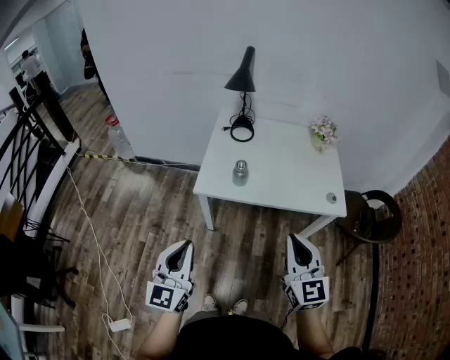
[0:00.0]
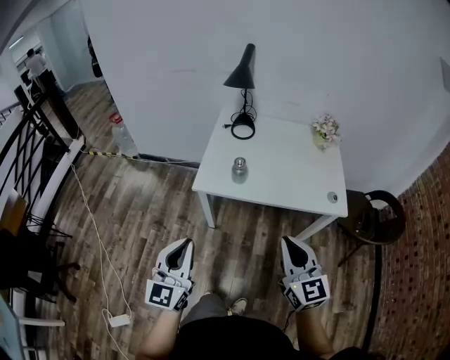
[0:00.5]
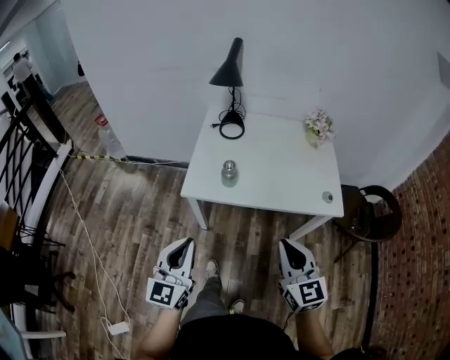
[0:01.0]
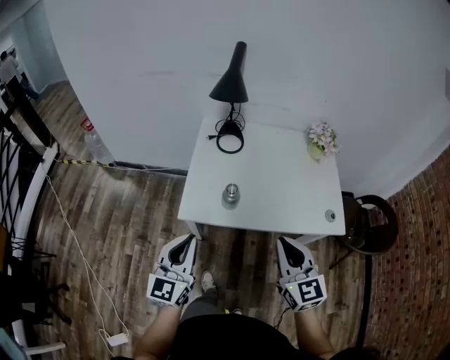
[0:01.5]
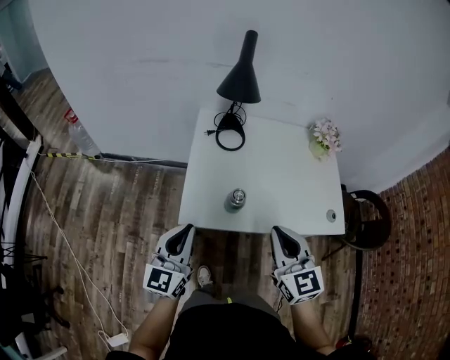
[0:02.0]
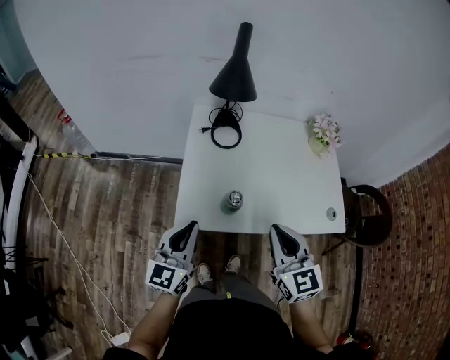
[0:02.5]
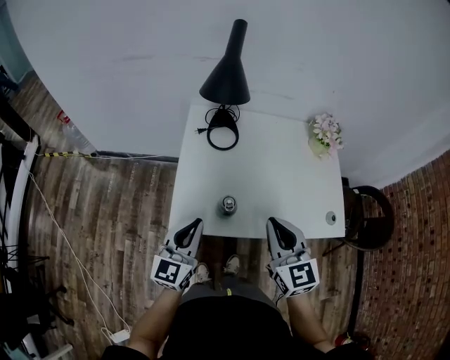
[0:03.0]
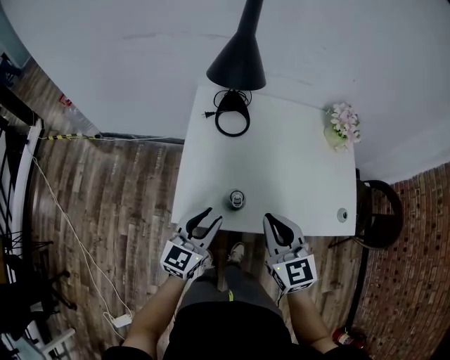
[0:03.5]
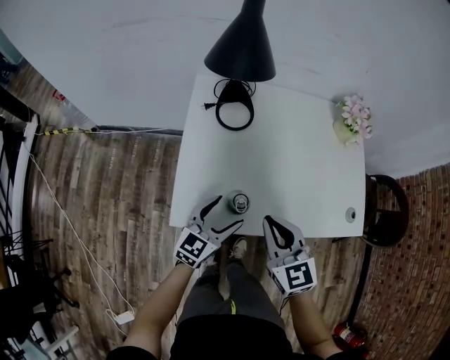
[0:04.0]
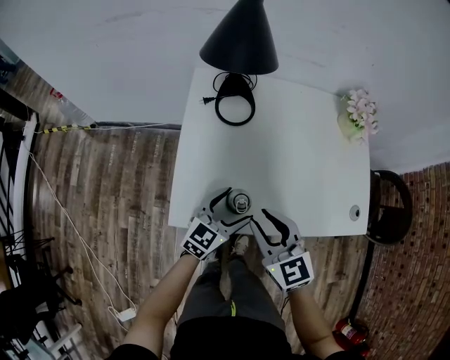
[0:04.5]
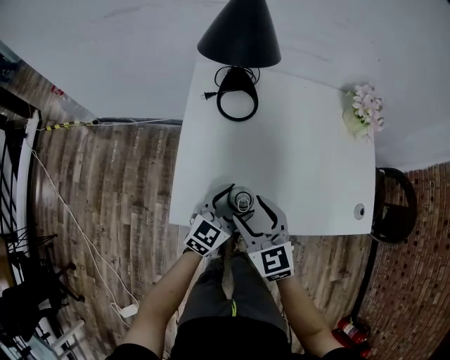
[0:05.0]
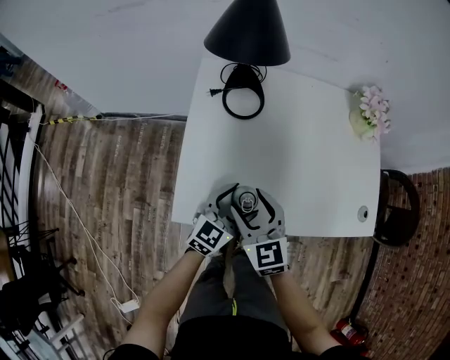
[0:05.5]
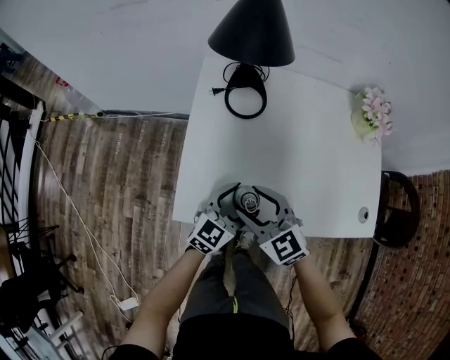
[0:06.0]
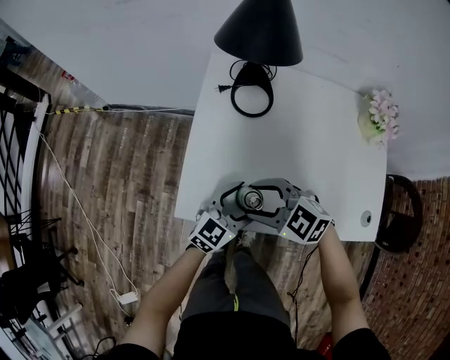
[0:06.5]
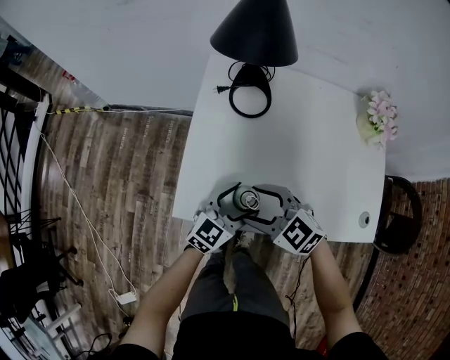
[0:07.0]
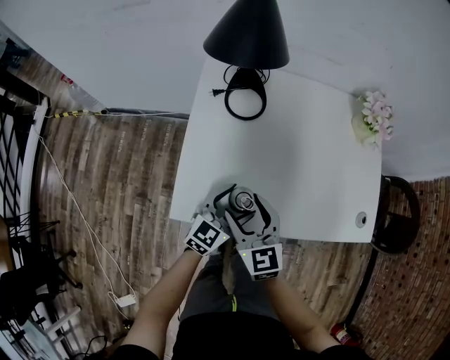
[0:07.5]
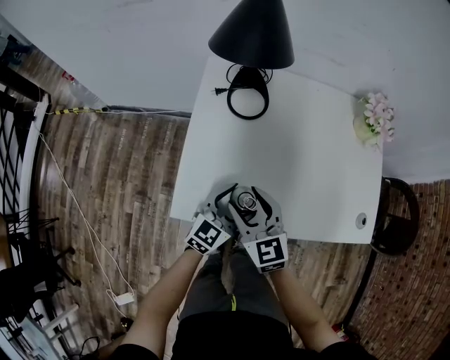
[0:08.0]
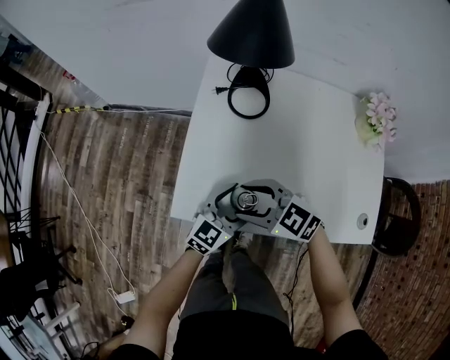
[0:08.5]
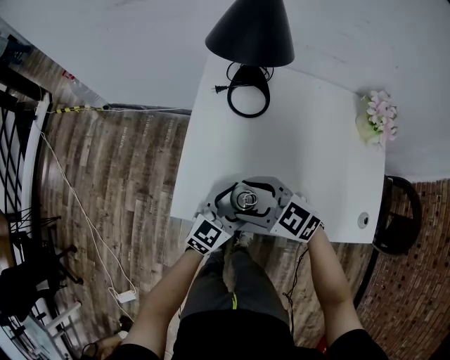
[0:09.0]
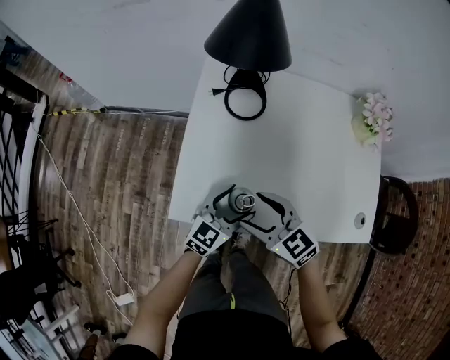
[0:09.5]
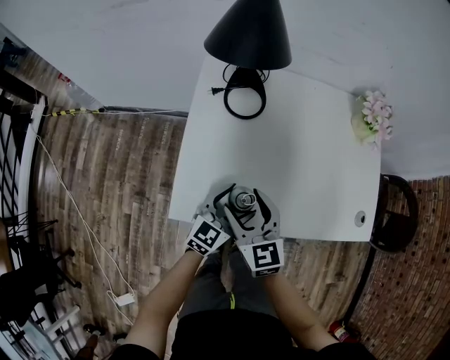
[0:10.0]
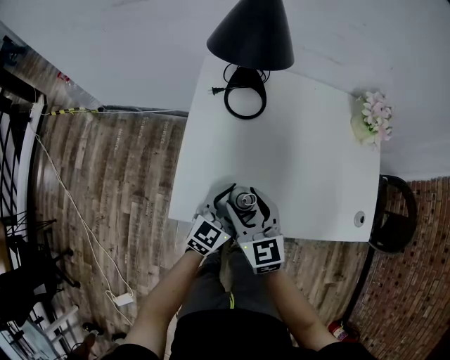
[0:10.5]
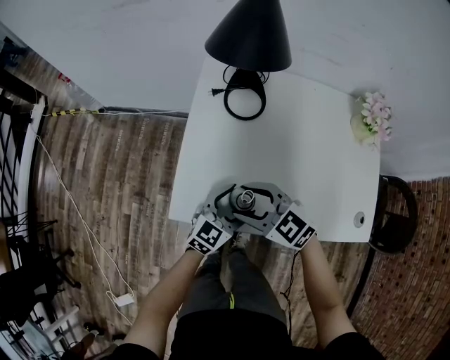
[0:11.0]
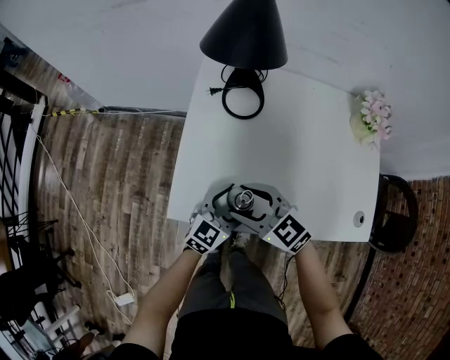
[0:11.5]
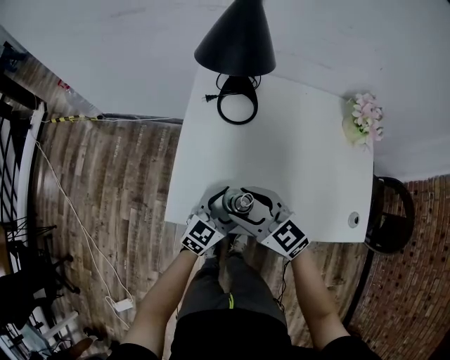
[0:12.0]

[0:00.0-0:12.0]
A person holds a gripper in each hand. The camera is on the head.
0:00.0 to 0:02.0: The two grippers go about 25 cm forward.
0:02.0 to 0:04.0: The left gripper heads downward, to the right and forward, covering approximately 25 cm, rotates approximately 30 degrees, and opens, while the right gripper is displaced downward and forward by roughly 15 cm.
0:04.0 to 0:06.0: The right gripper is displaced to the left and downward by about 10 cm, changes its angle by some 30 degrees, and opens, while the left gripper shifts by some 5 cm.
0:10.0 to 0:12.0: The right gripper rotates some 30 degrees.

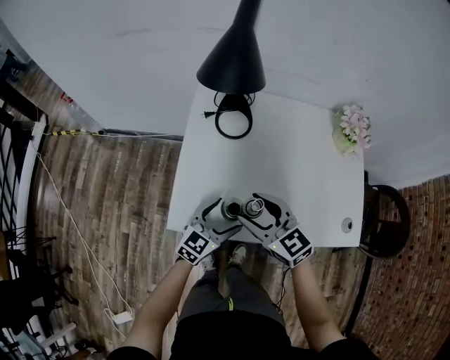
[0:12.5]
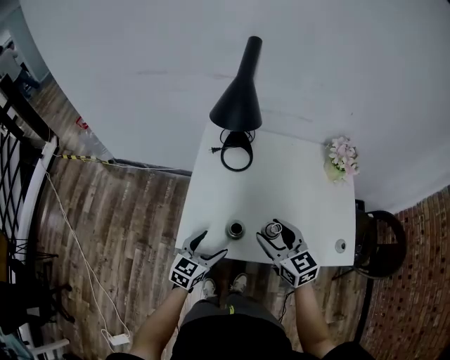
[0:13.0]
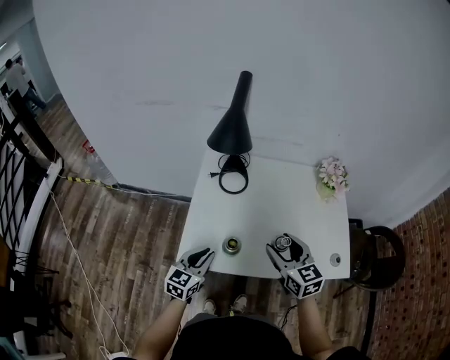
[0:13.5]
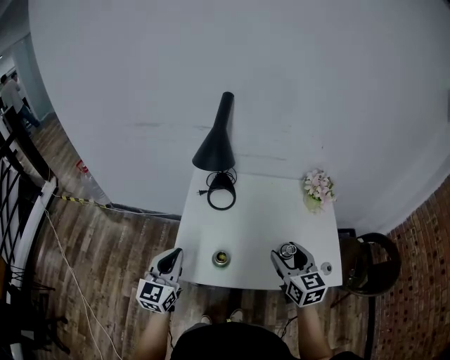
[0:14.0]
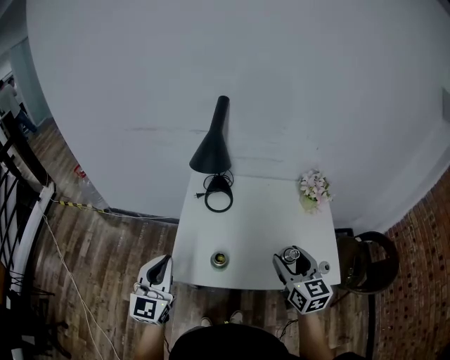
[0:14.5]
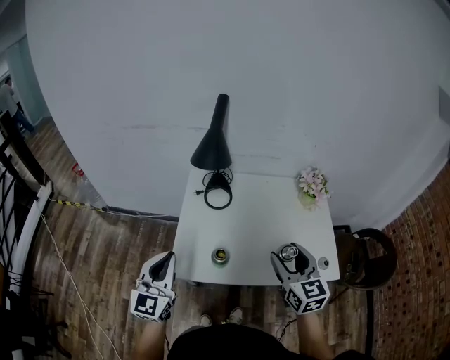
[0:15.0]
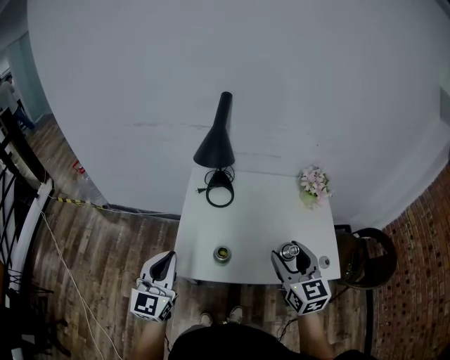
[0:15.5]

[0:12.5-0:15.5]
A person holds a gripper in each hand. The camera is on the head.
0:12.5 to 0:14.0: The right gripper heads to the right and upward, covering some 20 cm, and rotates approximately 30 degrees. The left gripper moves upward and to the left, some 25 cm, turns by approximately 30 degrees, and closes.
0:14.0 to 0:15.5: Both grippers travel together upward, approximately 5 cm.

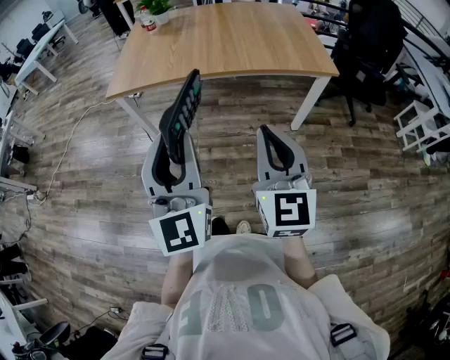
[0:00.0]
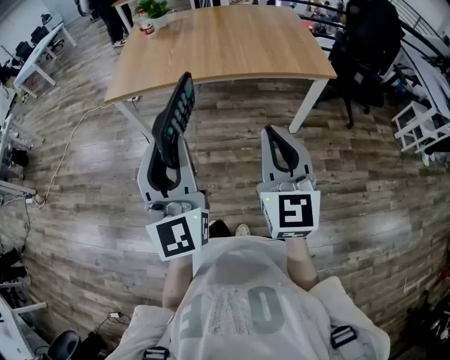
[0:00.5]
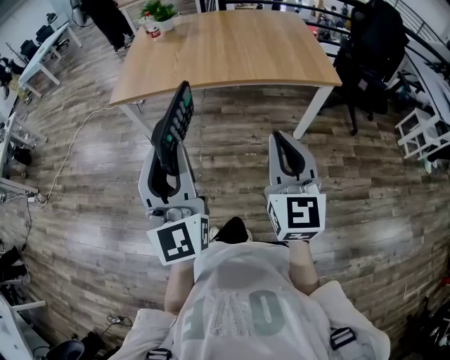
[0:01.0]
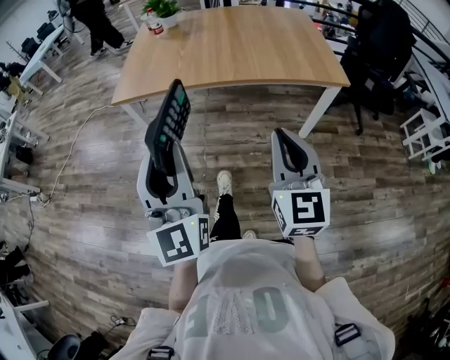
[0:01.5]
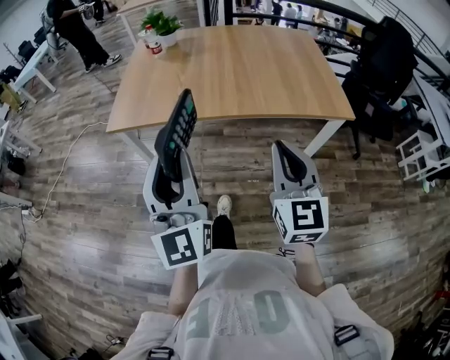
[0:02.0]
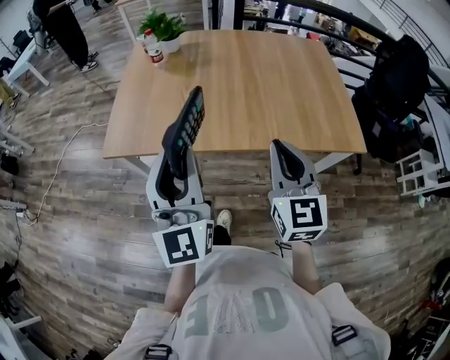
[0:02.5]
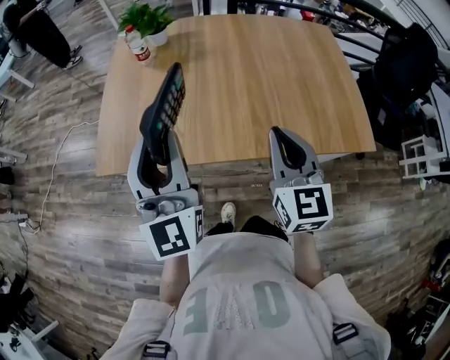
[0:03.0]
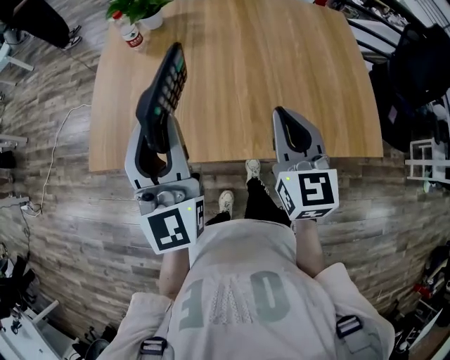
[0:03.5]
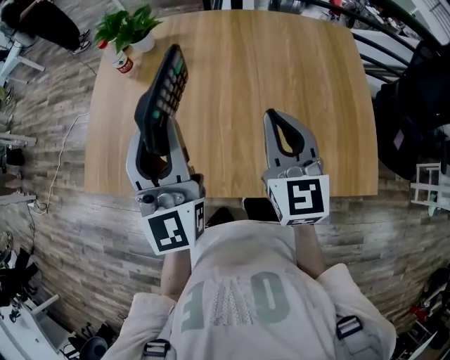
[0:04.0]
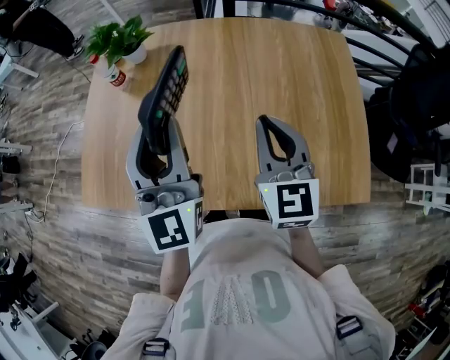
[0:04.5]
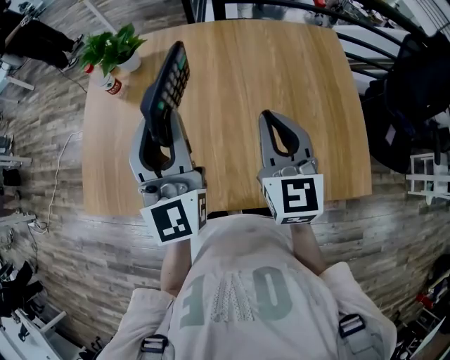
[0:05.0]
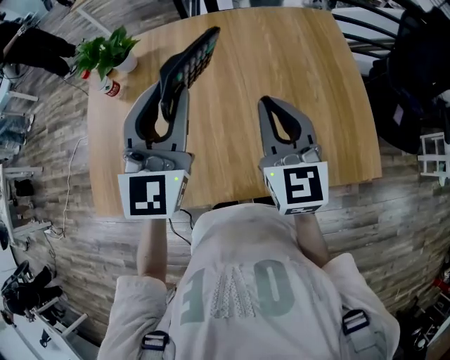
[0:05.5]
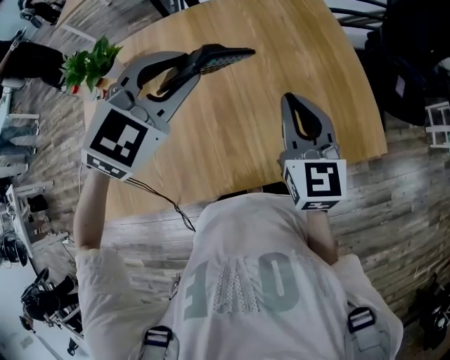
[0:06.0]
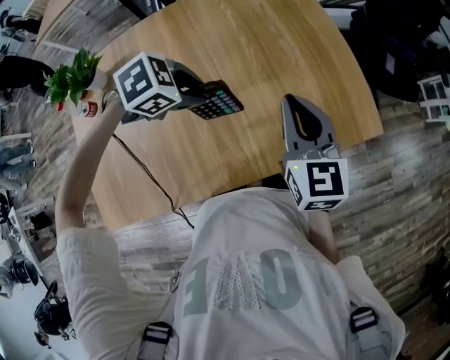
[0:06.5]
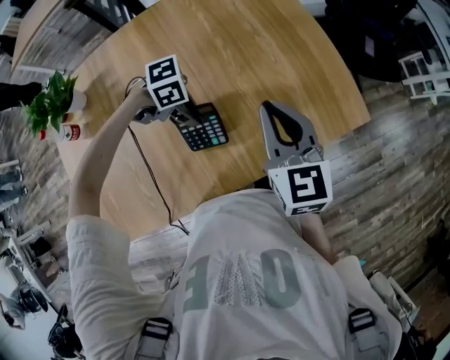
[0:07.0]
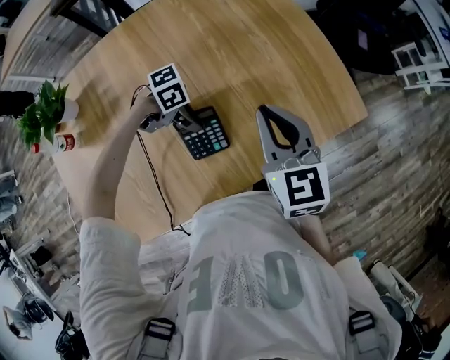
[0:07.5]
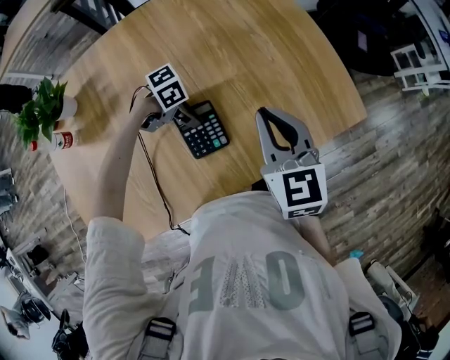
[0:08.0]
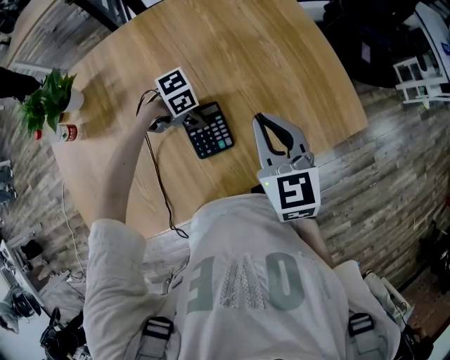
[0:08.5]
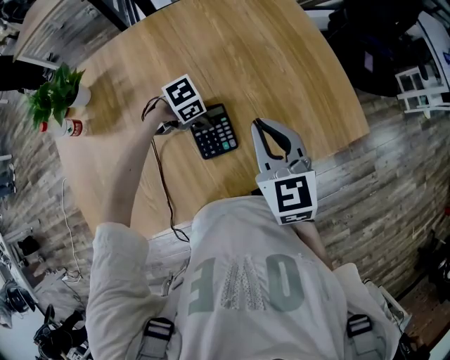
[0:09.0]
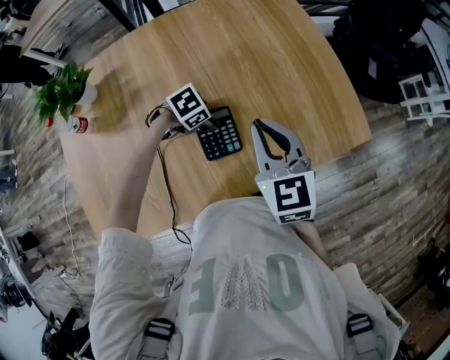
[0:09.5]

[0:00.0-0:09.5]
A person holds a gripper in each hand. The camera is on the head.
0:00.0 to 0:02.0: Both grippers move forward, some 20 cm.
0:02.0 to 0:04.0: The two grippers travel together, forward, about 50 cm.
0:04.0 to 0:05.5: The left gripper heads to the right and forward, covering roughly 10 cm, and turns by some 30 degrees.
0:05.5 to 0:07.5: The right gripper ends up roughly 10 cm from where it was, and rotates approximately 20 degrees. Meanwhile the left gripper moves downward, roughly 35 cm, and tilts its fingers about 40 degrees downward.
0:07.5 to 0:09.5: The left gripper ends up approximately 5 cm from where it was, rotates roughly 40 degrees, and opens. Meanwhile the right gripper ends up about 5 cm from where it was.

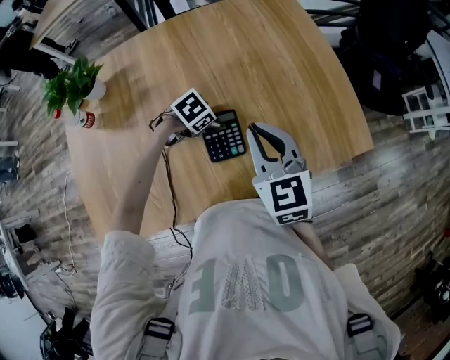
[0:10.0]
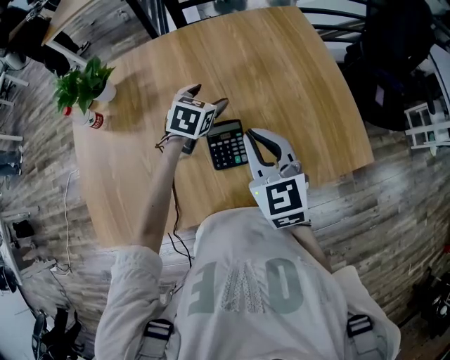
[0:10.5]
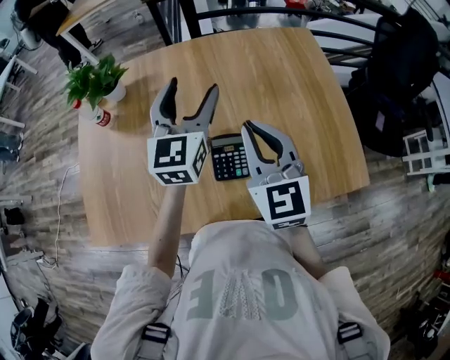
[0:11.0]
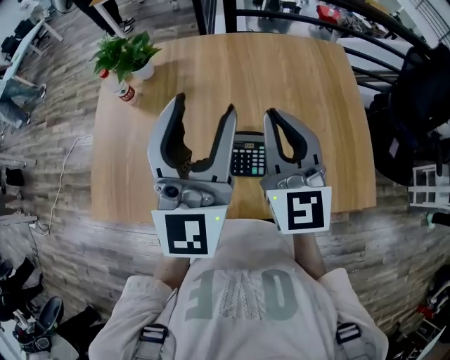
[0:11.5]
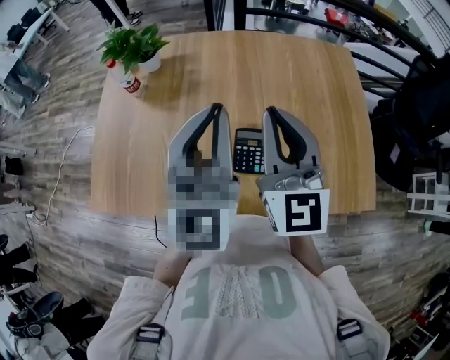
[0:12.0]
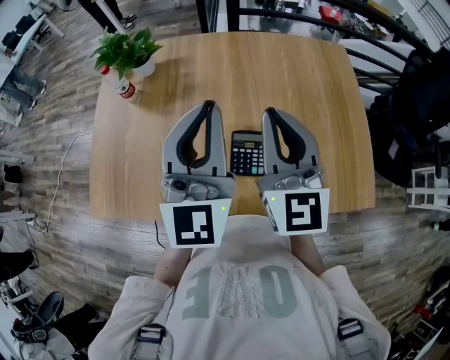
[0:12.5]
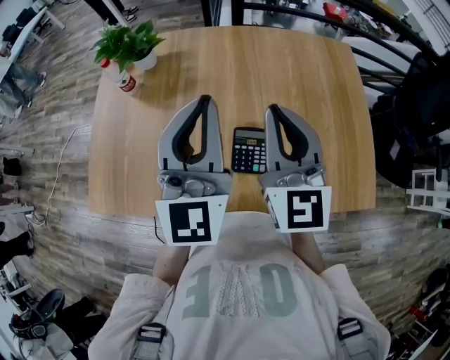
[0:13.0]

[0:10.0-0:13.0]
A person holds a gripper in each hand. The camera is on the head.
0:10.0 to 0:11.5: The right gripper travels upward by approximately 15 cm, and rotates approximately 30 degrees. Meanwhile the left gripper moves upward, about 40 cm, and tilts its fingers some 90 degrees upward.
0:11.5 to 0:13.0: The left gripper closes.
